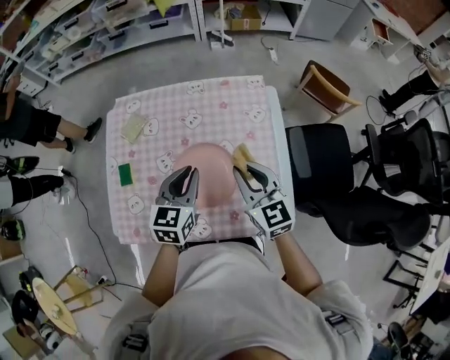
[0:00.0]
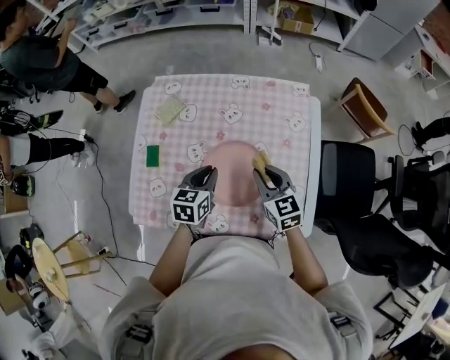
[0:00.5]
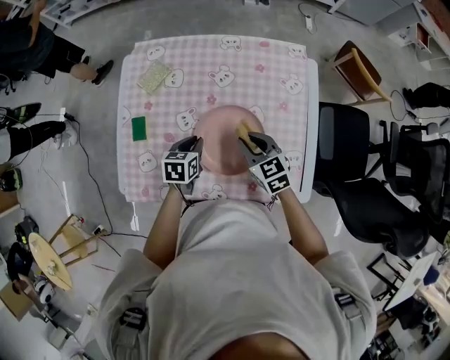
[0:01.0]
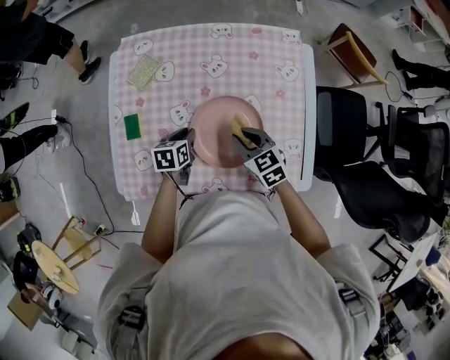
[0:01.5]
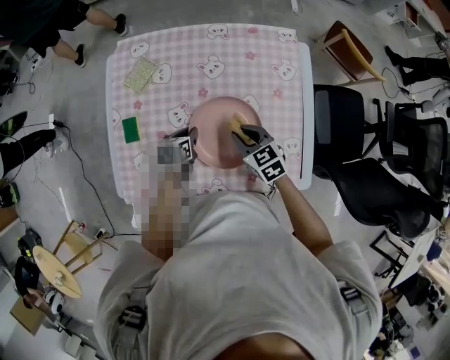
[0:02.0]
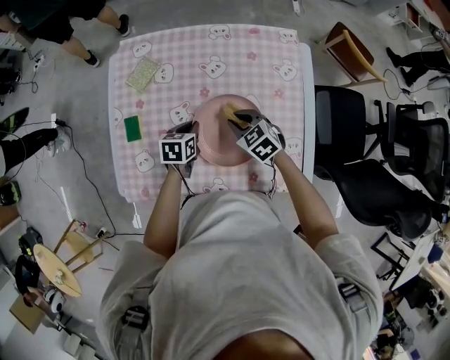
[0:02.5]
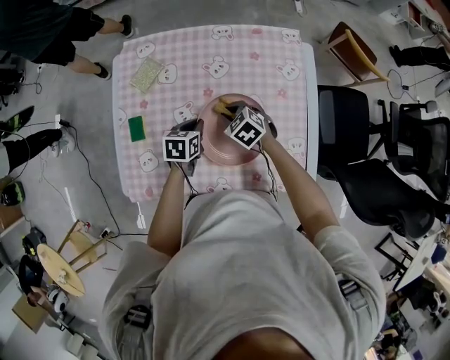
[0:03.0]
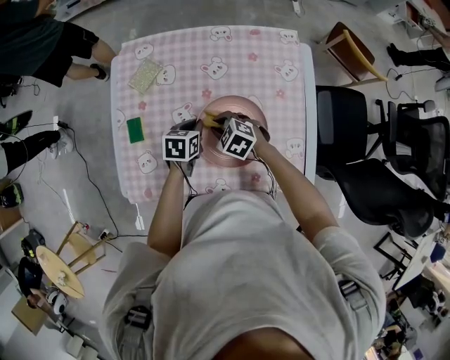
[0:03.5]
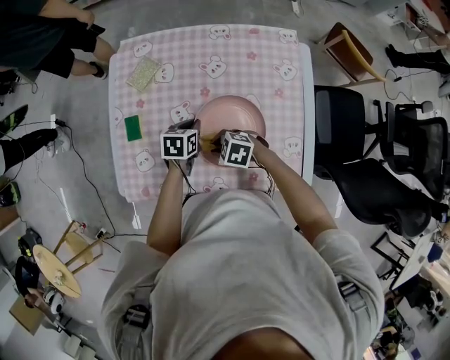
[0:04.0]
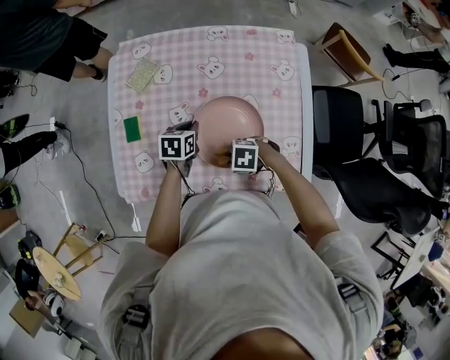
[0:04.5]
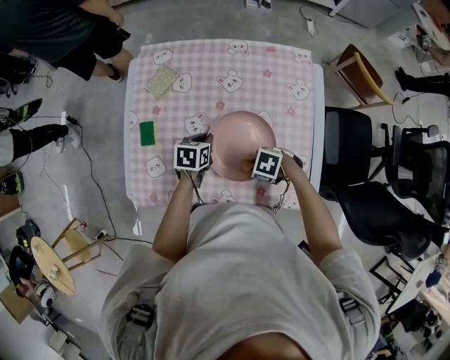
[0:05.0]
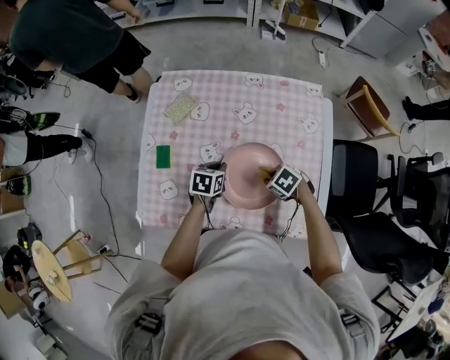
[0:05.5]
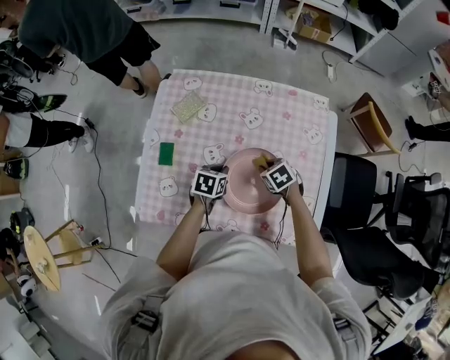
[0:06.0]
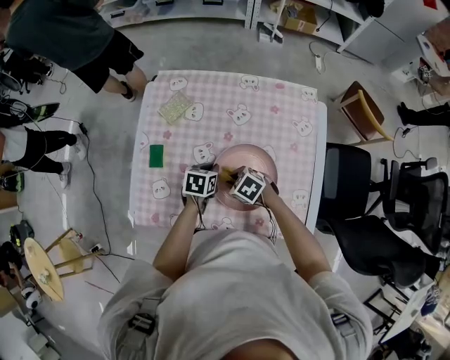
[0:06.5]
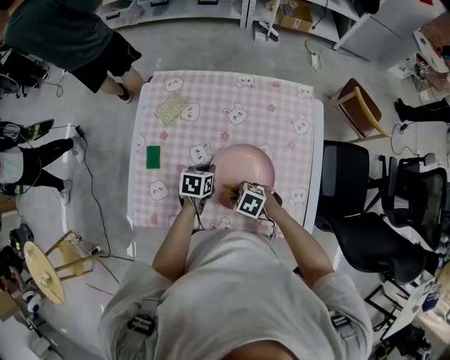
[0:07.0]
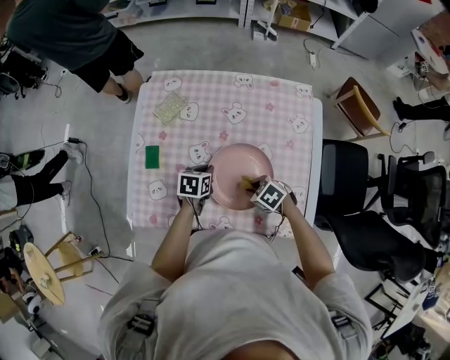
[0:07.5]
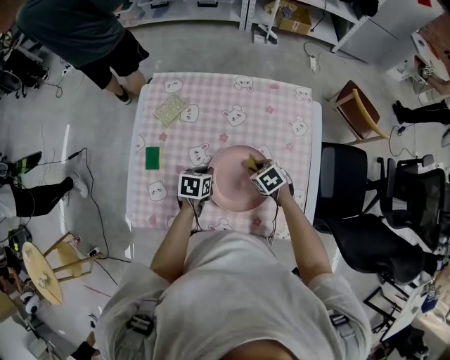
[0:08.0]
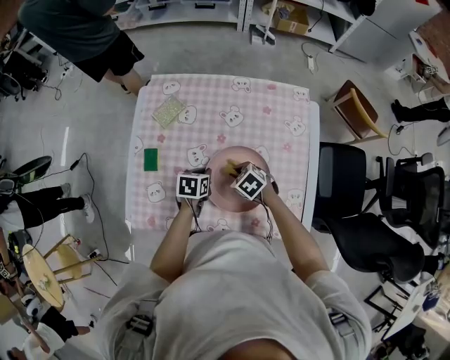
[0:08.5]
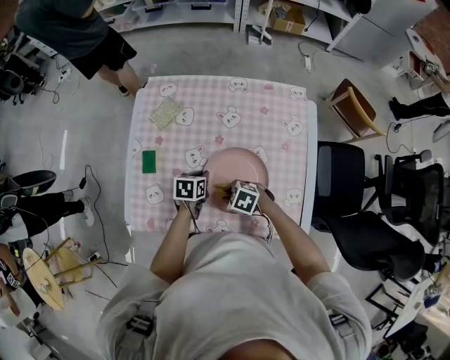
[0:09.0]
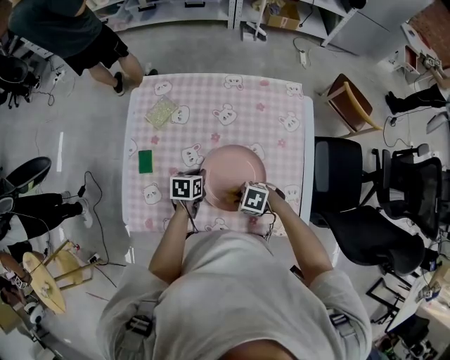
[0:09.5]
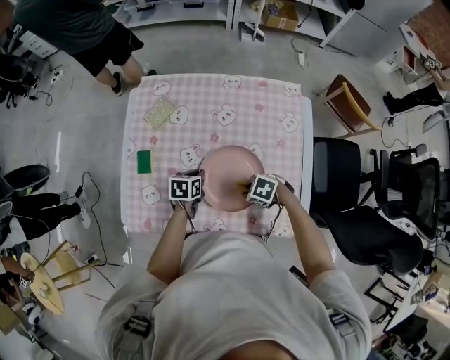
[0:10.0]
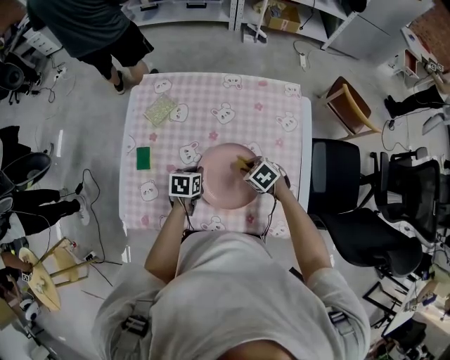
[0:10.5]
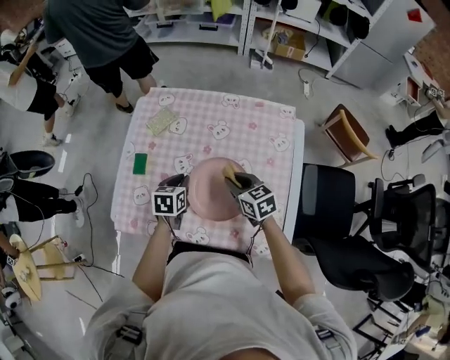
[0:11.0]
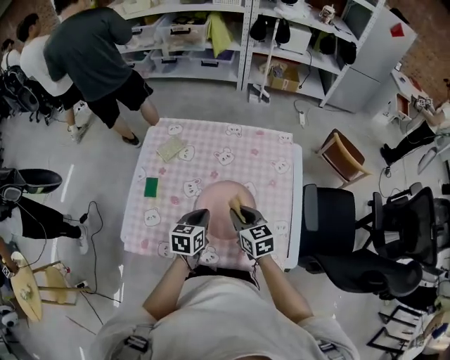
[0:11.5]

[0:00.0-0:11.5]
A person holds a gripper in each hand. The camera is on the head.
0:00.0 to 0:02.0: The grippers both shift downward and to the left by about 25 cm. The left gripper turns by roughly 40 degrees. Meanwhile the right gripper turns by approximately 30 degrees.
0:02.0 to 0:04.0: The right gripper changes place by roughly 15 cm, and turns by some 50 degrees.
0:04.0 to 0:06.0: The right gripper moves roughly 15 cm, and changes its angle by approximately 30 degrees.
0:09.5 to 0:11.5: The grippers both shift upward by some 15 cm. The right gripper points its fingers approximately 30 degrees further upward, while the left gripper changes its angle by approximately 20 degrees.

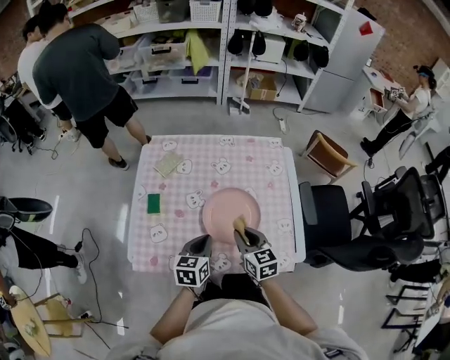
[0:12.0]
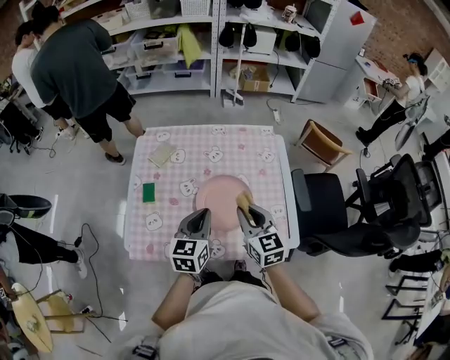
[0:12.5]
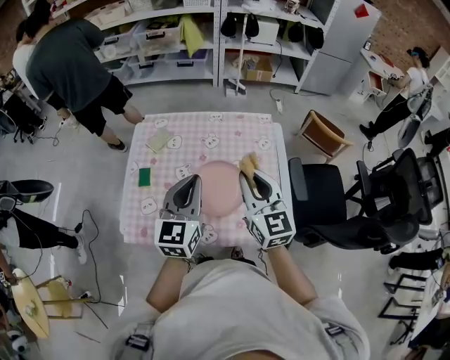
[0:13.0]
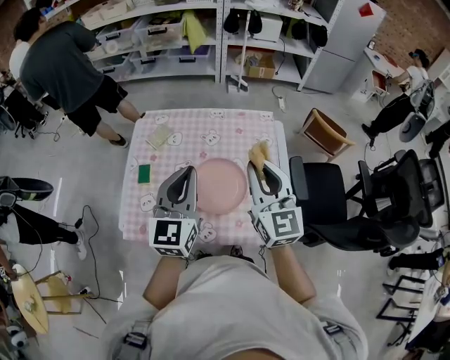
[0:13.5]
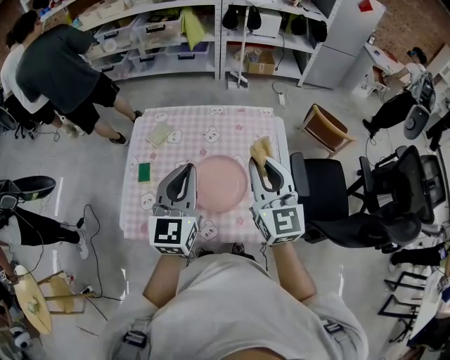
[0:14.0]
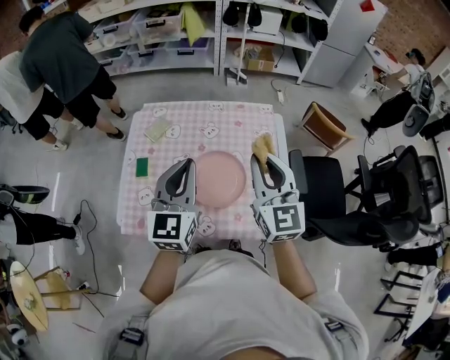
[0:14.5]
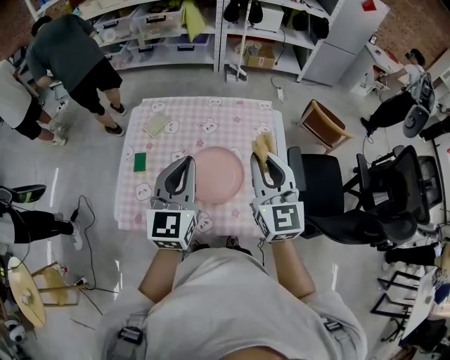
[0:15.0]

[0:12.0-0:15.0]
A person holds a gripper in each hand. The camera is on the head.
0:12.0 to 0:13.5: The two grippers go about 25 cm upward. The left gripper swivels approximately 40 degrees. Meanwhile the right gripper turns by roughly 30 degrees.
0:13.5 to 0:15.0: Neither gripper changes place.

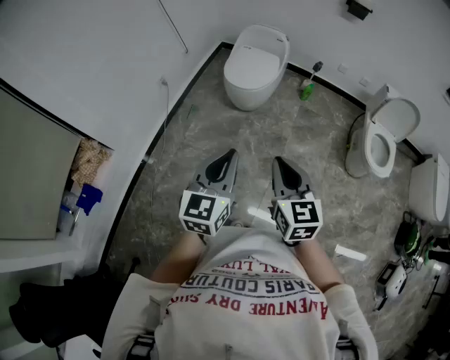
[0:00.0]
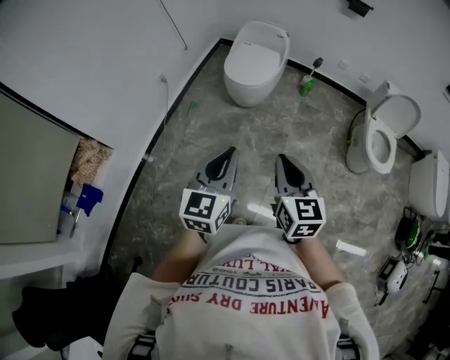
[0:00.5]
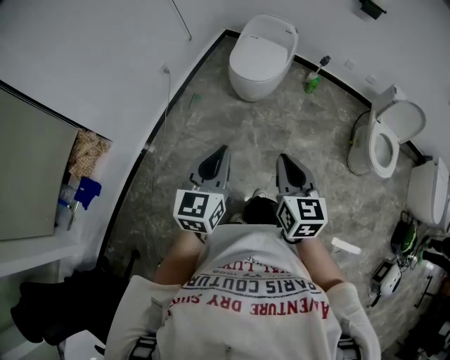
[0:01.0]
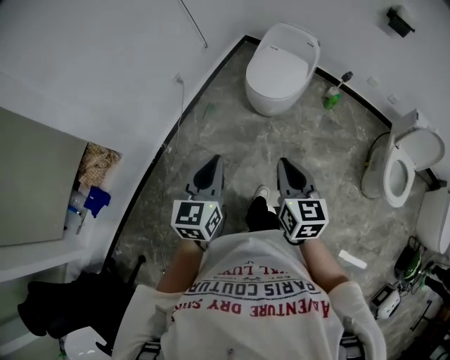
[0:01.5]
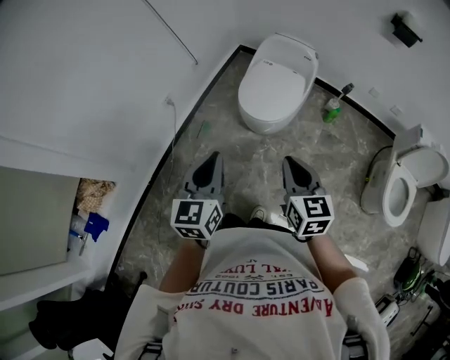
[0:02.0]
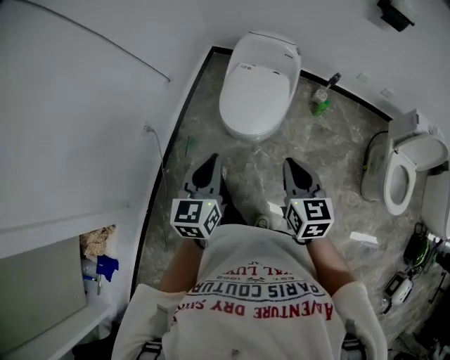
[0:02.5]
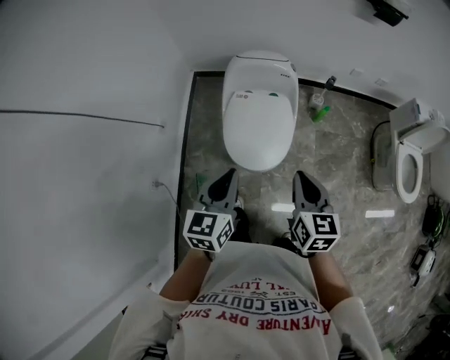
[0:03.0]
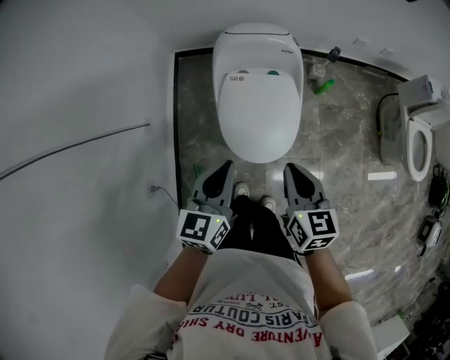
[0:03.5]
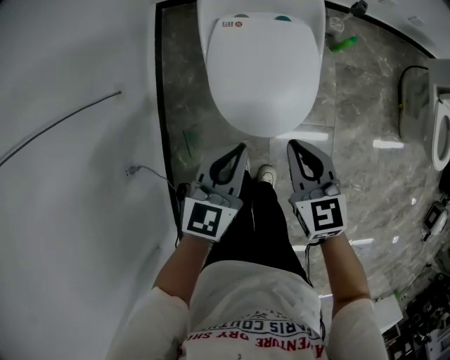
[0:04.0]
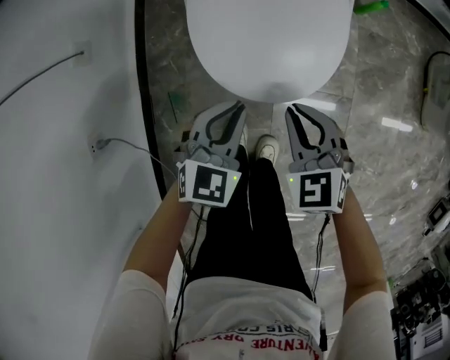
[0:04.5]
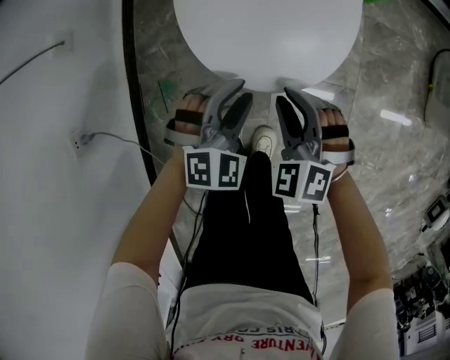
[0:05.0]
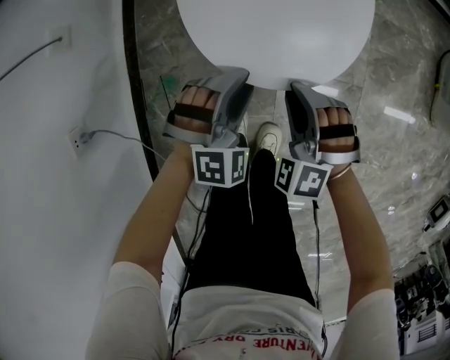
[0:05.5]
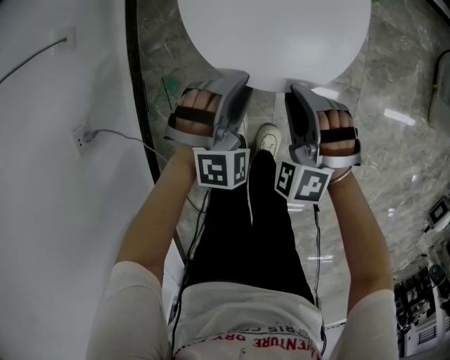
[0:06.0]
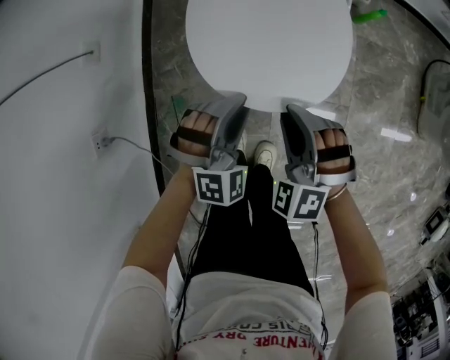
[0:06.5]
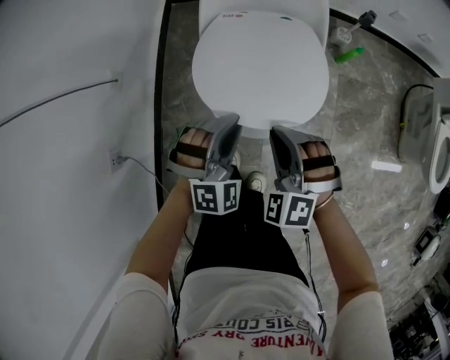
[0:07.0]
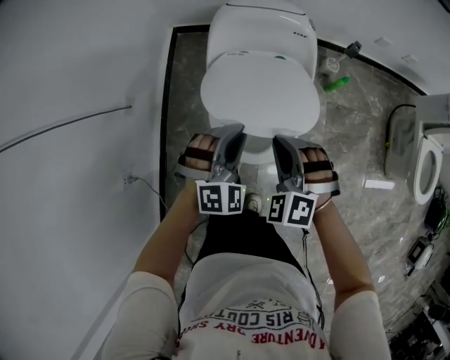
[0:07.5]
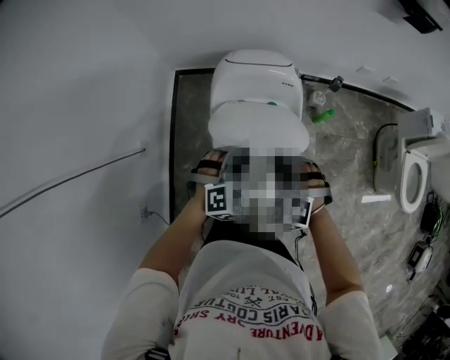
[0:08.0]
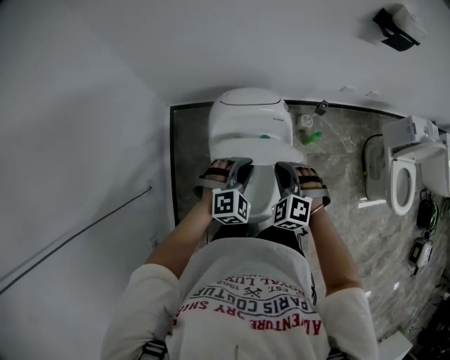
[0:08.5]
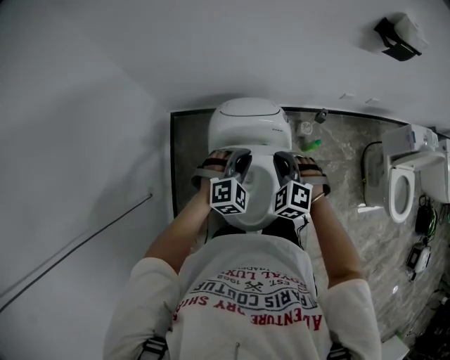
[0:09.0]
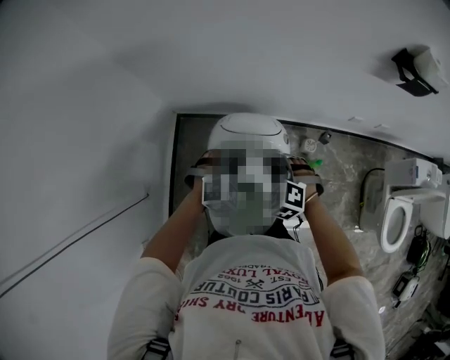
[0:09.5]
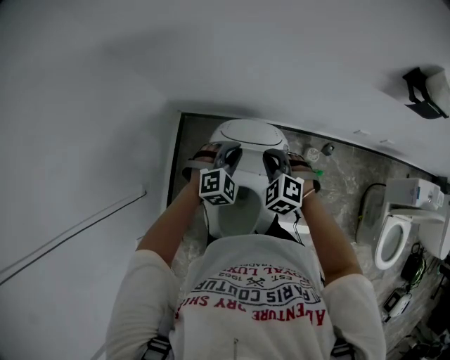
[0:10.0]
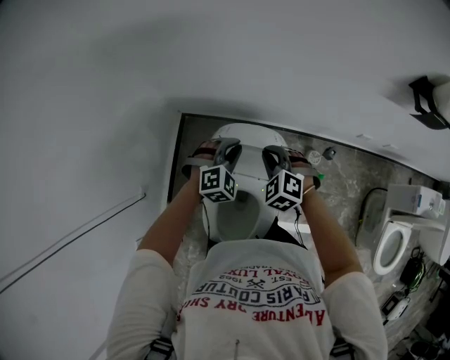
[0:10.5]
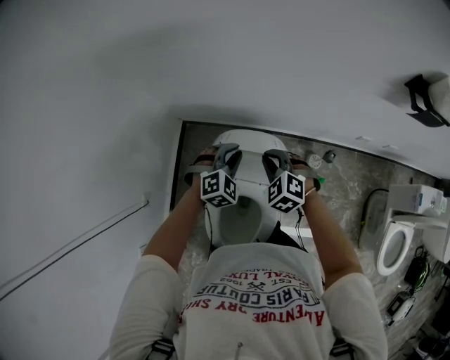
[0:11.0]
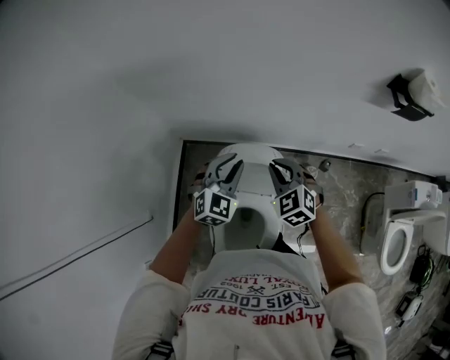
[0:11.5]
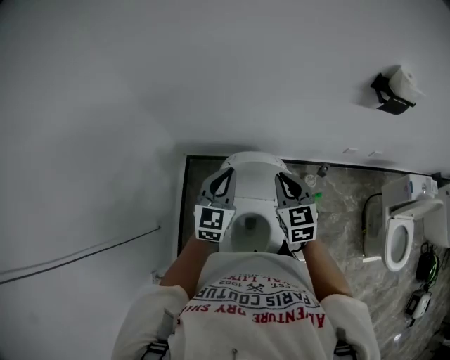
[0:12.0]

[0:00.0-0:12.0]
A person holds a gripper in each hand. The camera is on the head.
0:00.0 to 0:02.0: The two grippers go about 35 cm forward.
0:02.0 to 0:04.0: The two grippers travel together, some 40 cm. The left gripper rotates roughly 40 degrees. The right gripper changes its angle by about 20 degrees.
0:04.0 to 0:06.0: The two grippers go roughly 25 cm downward. The left gripper rolls clockwise, seen from behind, by some 70 degrees, and opens its fingers. The right gripper twists roughly 60 degrees counterclockwise, seen from behind.
0:06.0 to 0:08.0: The two grippers go some 40 cm upward and forward. The left gripper closes its fingers.
0:08.0 to 0:10.0: Both grippers move forward, roughly 30 cm.
0:10.0 to 0:12.0: The grippers both shift upward by approximately 15 cm. The left gripper angles its fingers upward, by some 30 degrees. Meanwhile the right gripper rotates around the line of its fingers by some 40 degrees, clockwise from behind.
